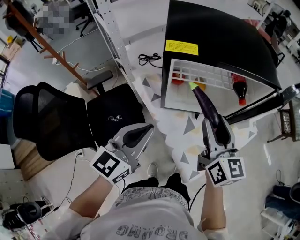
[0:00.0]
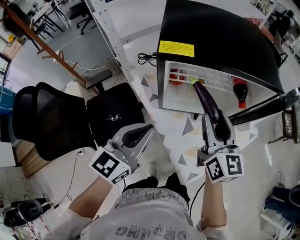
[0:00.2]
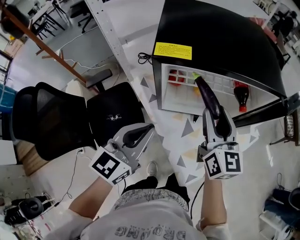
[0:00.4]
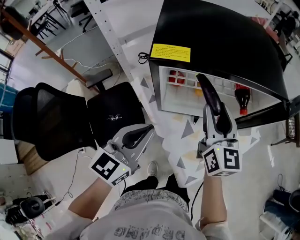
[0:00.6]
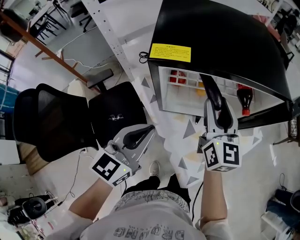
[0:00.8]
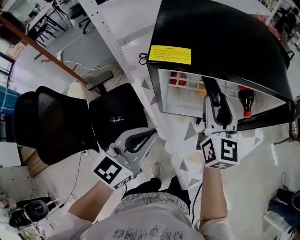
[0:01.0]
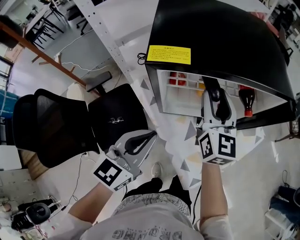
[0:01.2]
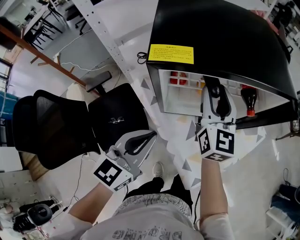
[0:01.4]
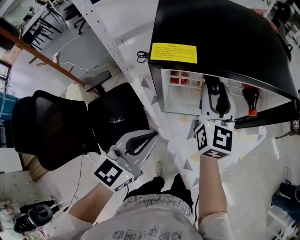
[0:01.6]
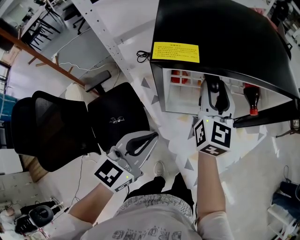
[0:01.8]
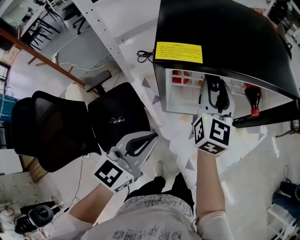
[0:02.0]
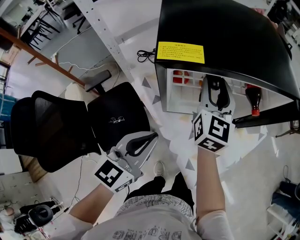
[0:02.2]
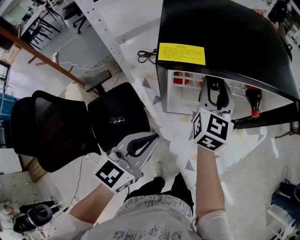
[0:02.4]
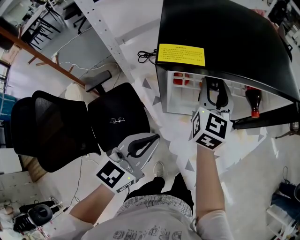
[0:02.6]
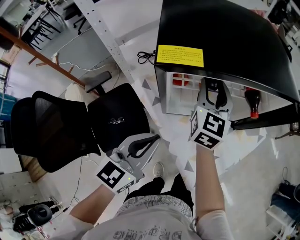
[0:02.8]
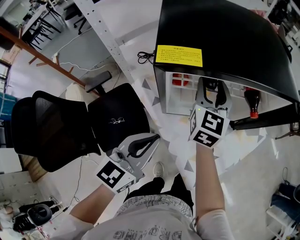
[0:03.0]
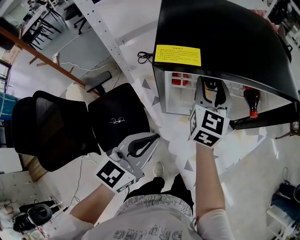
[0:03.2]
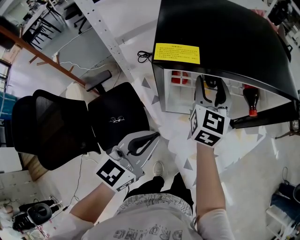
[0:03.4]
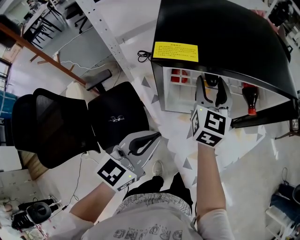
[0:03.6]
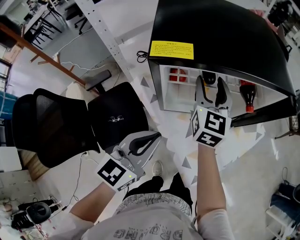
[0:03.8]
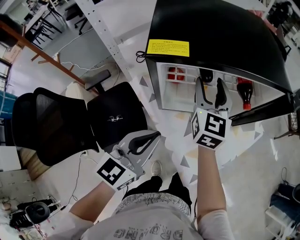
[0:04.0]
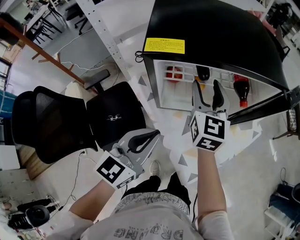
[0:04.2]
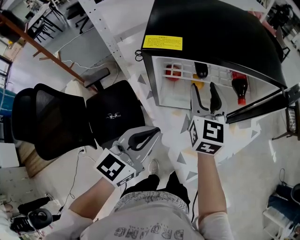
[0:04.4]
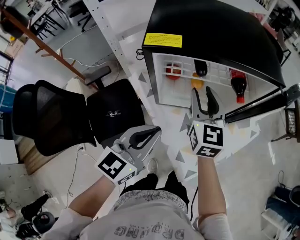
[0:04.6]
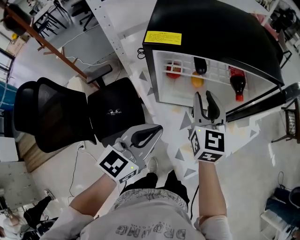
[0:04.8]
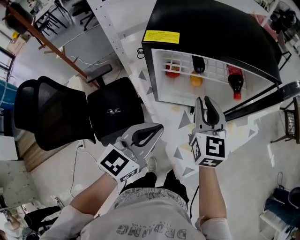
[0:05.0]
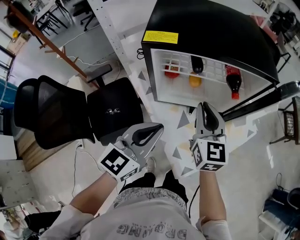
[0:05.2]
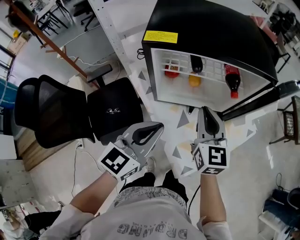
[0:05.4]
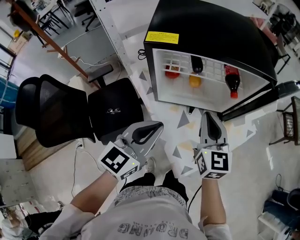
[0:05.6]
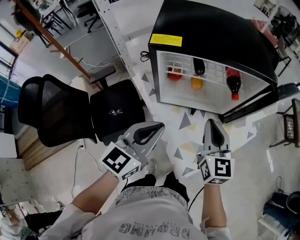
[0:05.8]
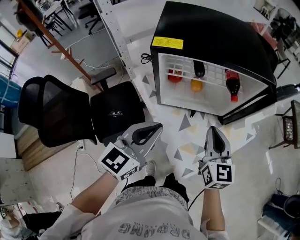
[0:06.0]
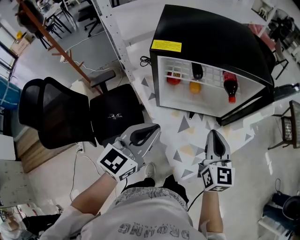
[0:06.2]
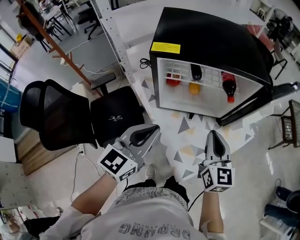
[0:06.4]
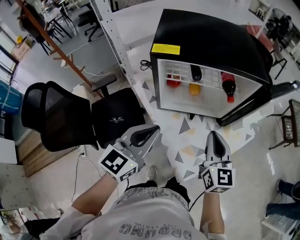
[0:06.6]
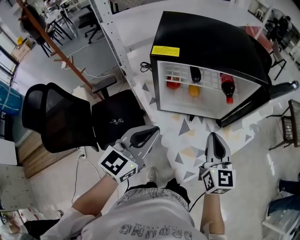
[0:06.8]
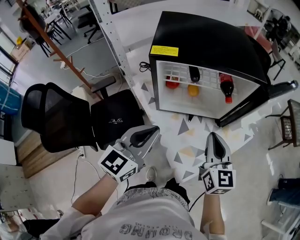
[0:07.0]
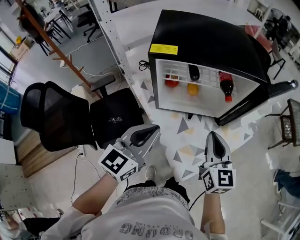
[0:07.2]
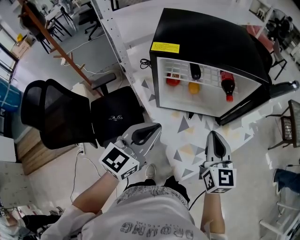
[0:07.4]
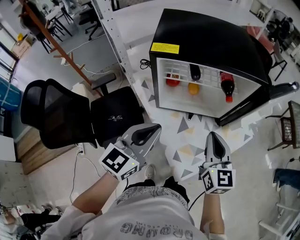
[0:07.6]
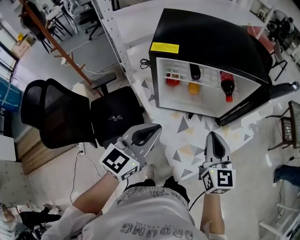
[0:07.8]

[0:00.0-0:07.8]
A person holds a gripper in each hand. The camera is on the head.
0:00.0 to 0:01.6: The right gripper moves forward, approximately 15 cm; the left gripper moves roughly 5 cm.
0:01.6 to 0:03.2: The grippers stay close to where they were, moving slightly.
0:03.2 to 0:04.6: The left gripper shifts by some 5 cm. Meanwhile the right gripper travels backward by approximately 10 cm.
0:04.6 to 0:06.2: The right gripper is displaced backward and to the right by approximately 15 cm, and closes its fingers.
0:06.2 to 0:07.8: The grippers make only small movements.

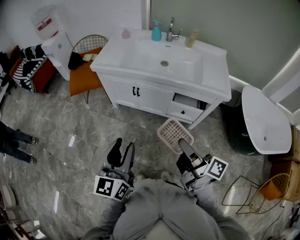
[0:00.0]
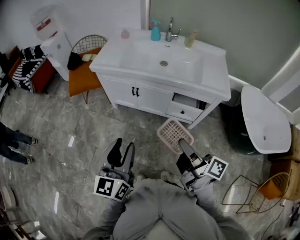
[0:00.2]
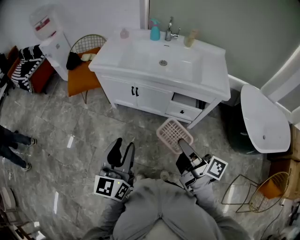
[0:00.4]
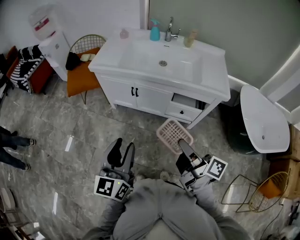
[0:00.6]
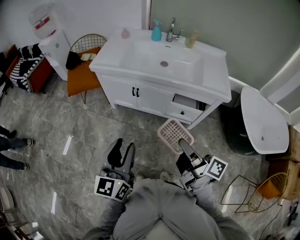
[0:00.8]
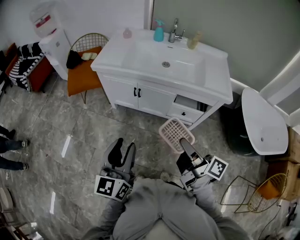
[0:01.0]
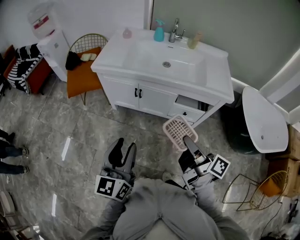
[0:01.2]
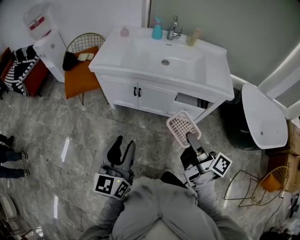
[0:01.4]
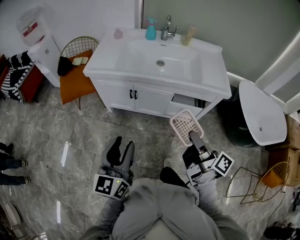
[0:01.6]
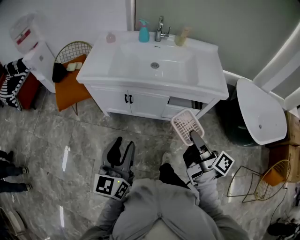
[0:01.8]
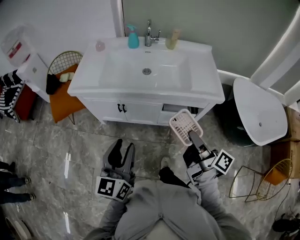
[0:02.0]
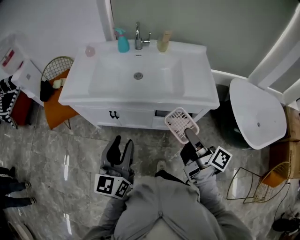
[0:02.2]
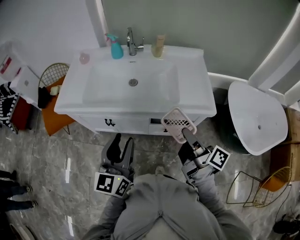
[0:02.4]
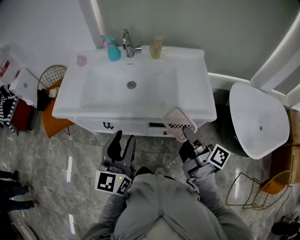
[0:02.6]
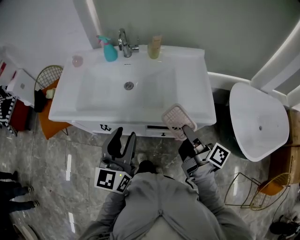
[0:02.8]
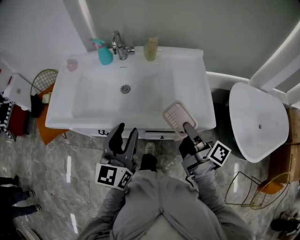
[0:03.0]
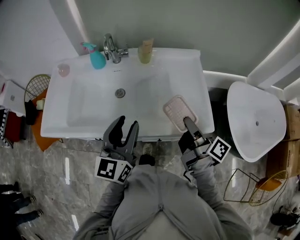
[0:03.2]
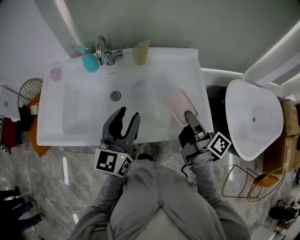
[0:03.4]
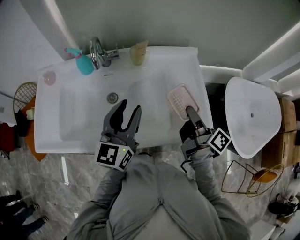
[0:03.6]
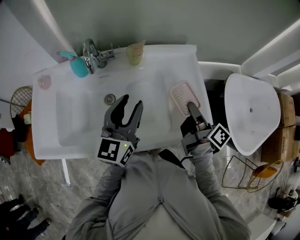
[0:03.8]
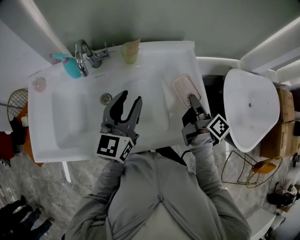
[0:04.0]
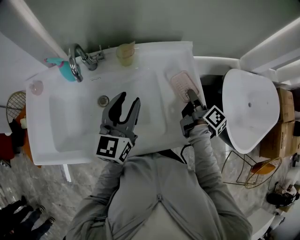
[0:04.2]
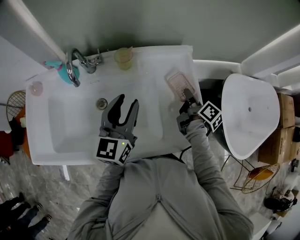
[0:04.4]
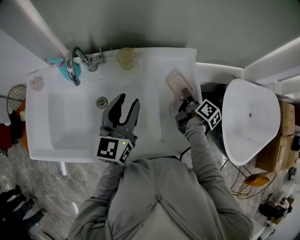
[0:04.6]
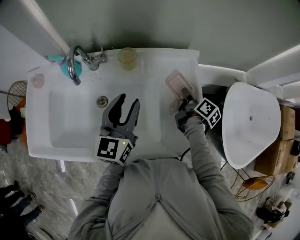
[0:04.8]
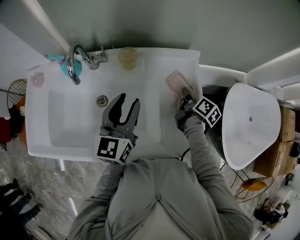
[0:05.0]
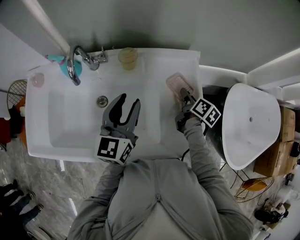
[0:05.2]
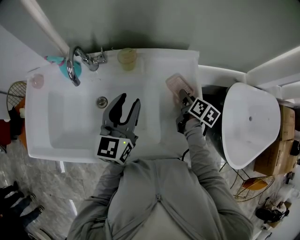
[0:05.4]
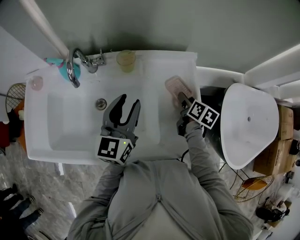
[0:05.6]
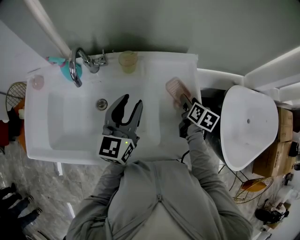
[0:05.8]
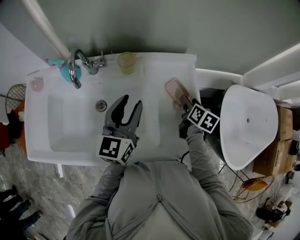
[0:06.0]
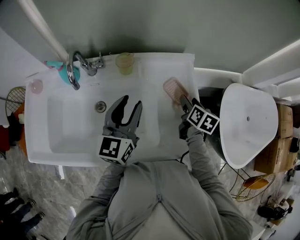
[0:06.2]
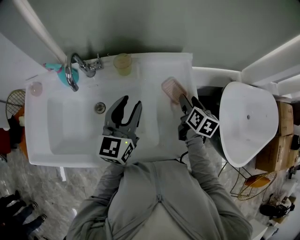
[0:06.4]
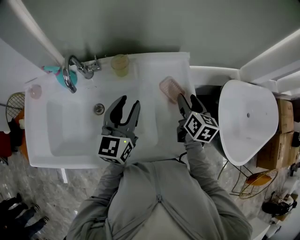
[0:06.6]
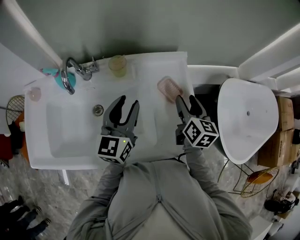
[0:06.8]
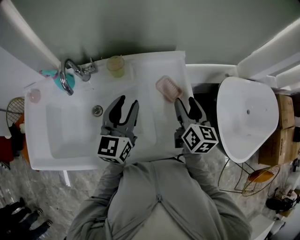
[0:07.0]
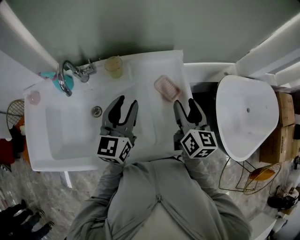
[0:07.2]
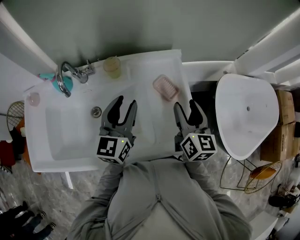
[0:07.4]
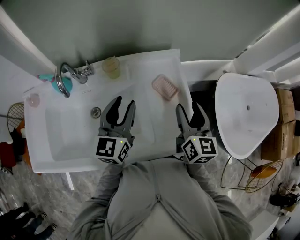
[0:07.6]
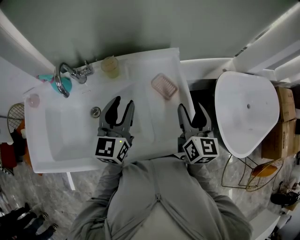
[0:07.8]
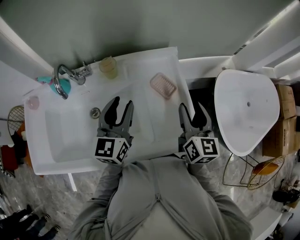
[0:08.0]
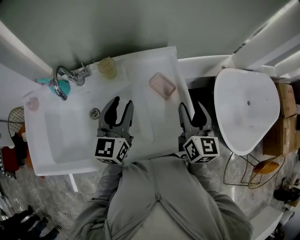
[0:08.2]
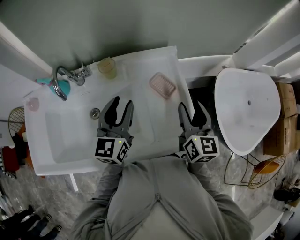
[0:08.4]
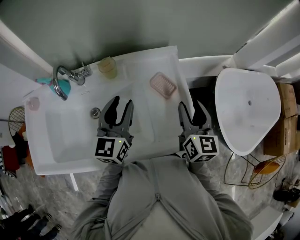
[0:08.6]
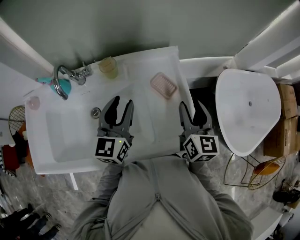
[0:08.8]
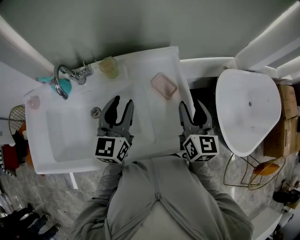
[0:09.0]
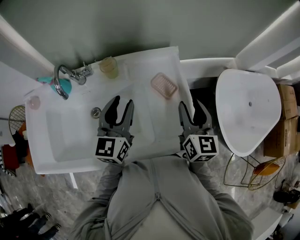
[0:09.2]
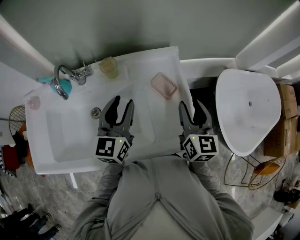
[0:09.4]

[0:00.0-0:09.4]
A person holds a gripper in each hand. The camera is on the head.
0:00.0 to 0:01.6: The two grippers go about 5 cm forward.
0:01.6 to 0:03.2: The grippers both shift forward and to the right by roughly 40 cm.
0:03.2 to 0:04.8: The left gripper is displaced forward by about 20 cm; the right gripper goes some 30 cm forward and downward, and turns by roughly 30 degrees.
0:04.8 to 0:06.2: The right gripper changes its angle by approximately 30 degrees, and opens its fingers.
0:06.2 to 0:07.8: The right gripper moves upward and backward, about 15 cm, and changes its angle by approximately 30 degrees.
0:07.8 to 0:09.4: There are only small adjustments of the grippers.

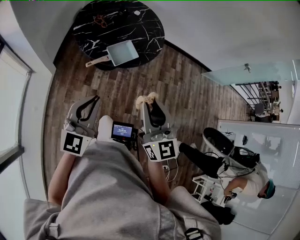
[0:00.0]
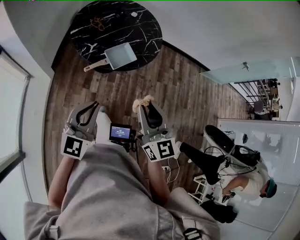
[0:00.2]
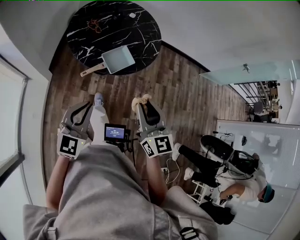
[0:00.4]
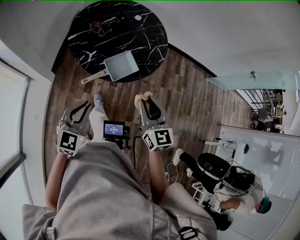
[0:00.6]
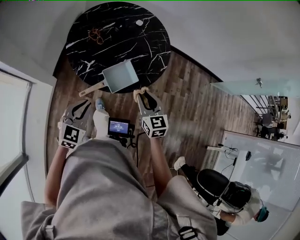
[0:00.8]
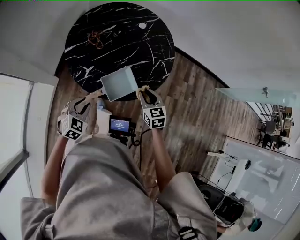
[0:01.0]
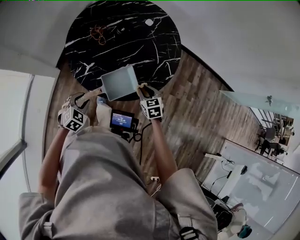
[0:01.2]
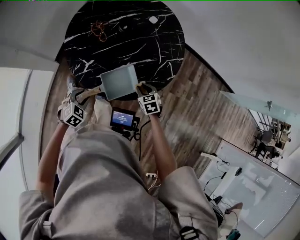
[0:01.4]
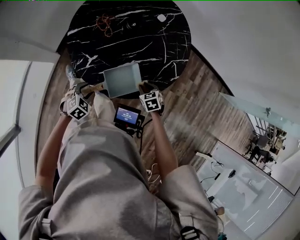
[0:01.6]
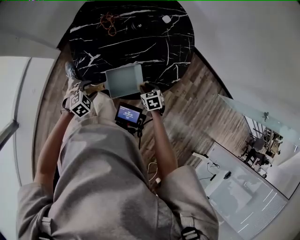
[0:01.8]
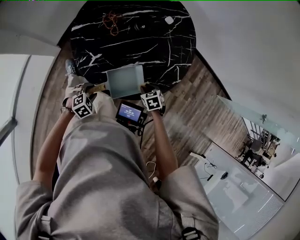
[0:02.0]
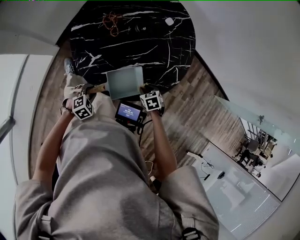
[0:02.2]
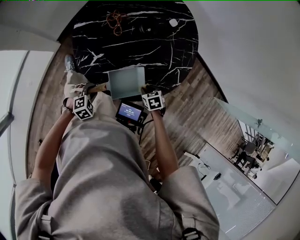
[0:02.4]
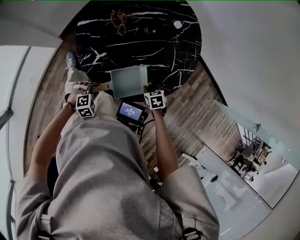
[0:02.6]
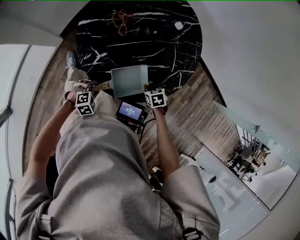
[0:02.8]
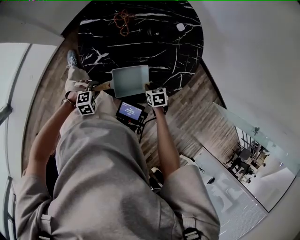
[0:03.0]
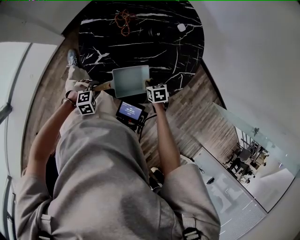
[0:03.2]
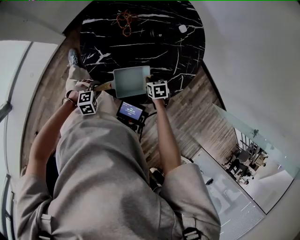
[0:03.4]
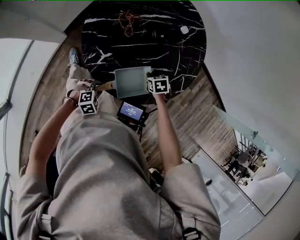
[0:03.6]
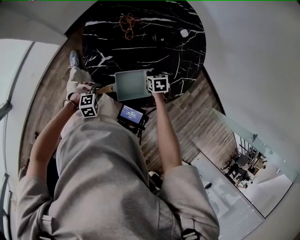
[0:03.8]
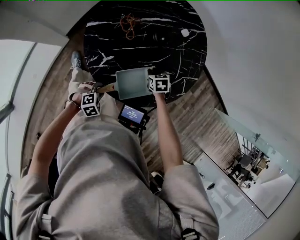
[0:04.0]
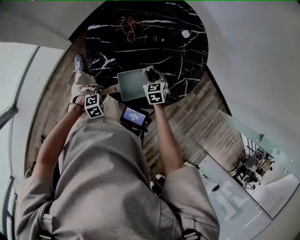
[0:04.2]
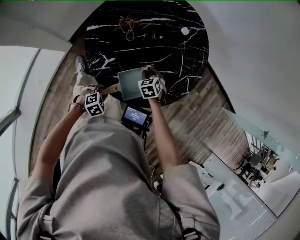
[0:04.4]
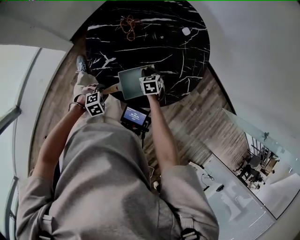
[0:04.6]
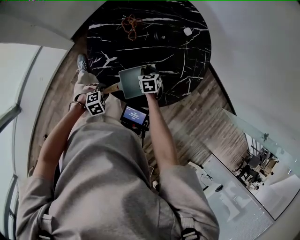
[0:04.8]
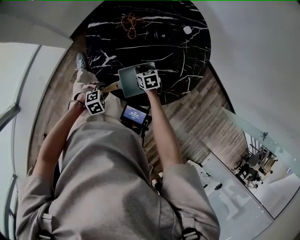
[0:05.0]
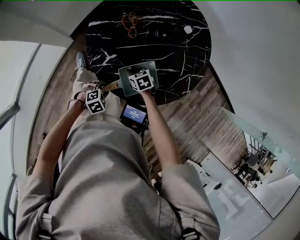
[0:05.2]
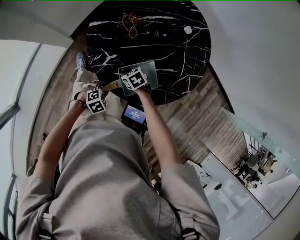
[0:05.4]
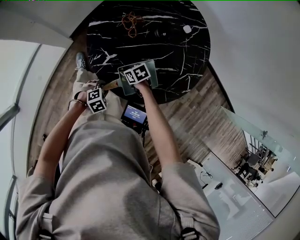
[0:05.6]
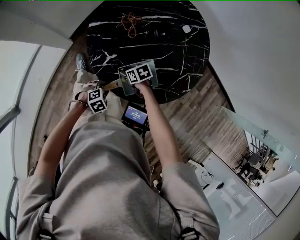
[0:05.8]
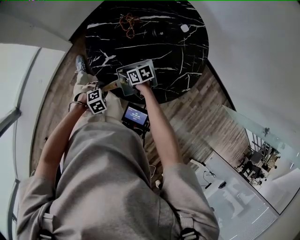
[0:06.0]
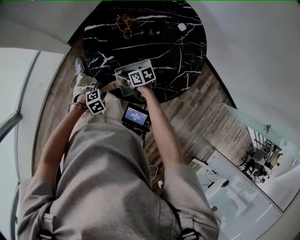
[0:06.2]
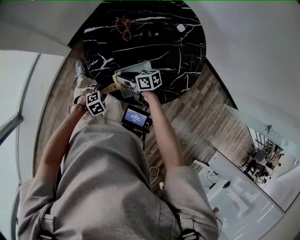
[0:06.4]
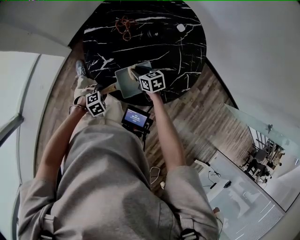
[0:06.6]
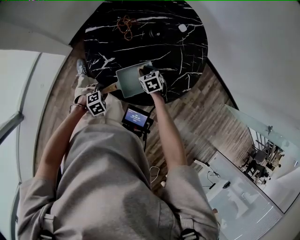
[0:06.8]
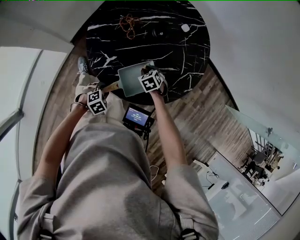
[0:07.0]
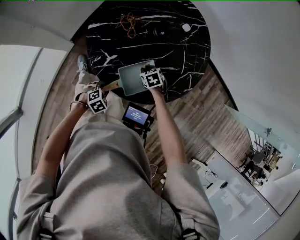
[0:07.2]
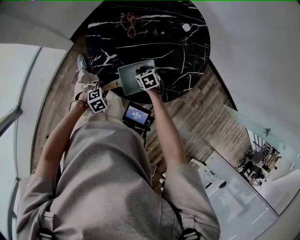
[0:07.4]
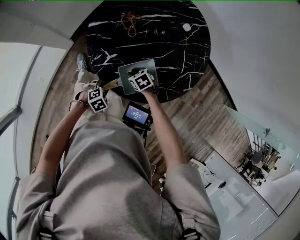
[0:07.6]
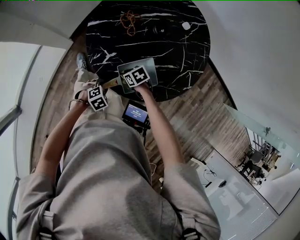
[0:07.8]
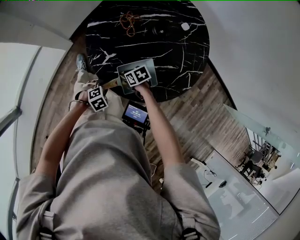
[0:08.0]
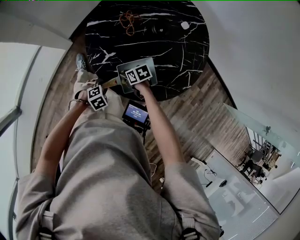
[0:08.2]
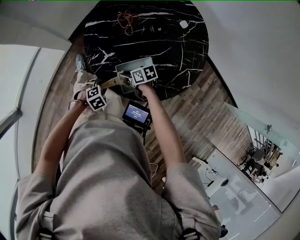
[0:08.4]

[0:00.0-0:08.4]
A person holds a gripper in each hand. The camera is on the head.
0:00.0 to 0:01.4: The two grippers go about 50 cm downward and forward. The right gripper tips its fingers downward by approximately 50 degrees. Meanwhile the left gripper points its fingers about 50 degrees further downward, and opens its fingers.
0:01.4 to 0:02.8: The right gripper changes place by some 5 cm, and changes its angle by about 20 degrees. The left gripper goes approximately 5 cm downward.
0:02.8 to 0:04.2: The right gripper shifts by about 15 cm, and rotates roughly 30 degrees.
0:04.2 to 0:05.6: The right gripper moves some 15 cm, and turns by approximately 40 degrees.
0:05.6 to 0:07.0: The right gripper travels upward and back again, about 10 cm each way, and swivels approximately 30 degrees.
0:07.0 to 0:08.4: The right gripper changes place by roughly 15 cm, and swivels about 50 degrees.
